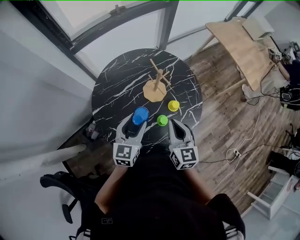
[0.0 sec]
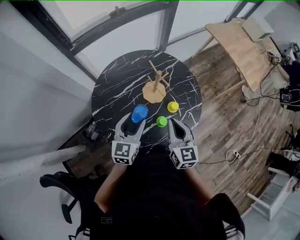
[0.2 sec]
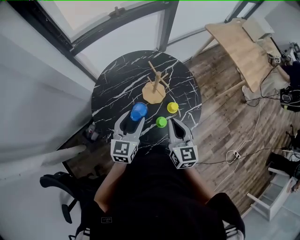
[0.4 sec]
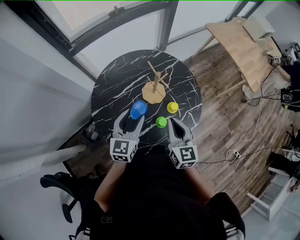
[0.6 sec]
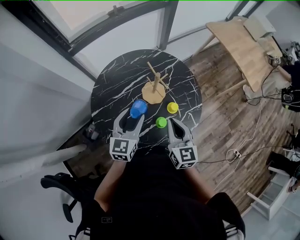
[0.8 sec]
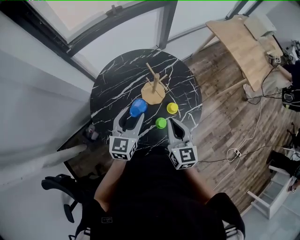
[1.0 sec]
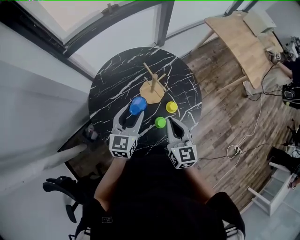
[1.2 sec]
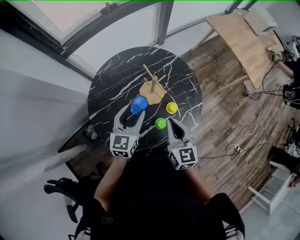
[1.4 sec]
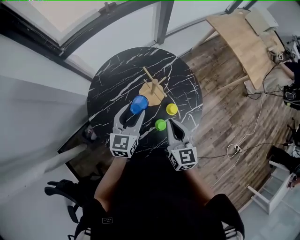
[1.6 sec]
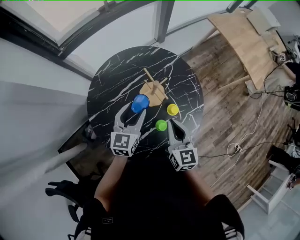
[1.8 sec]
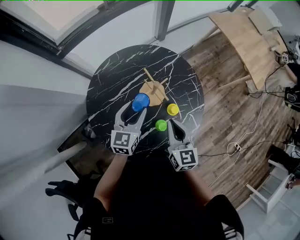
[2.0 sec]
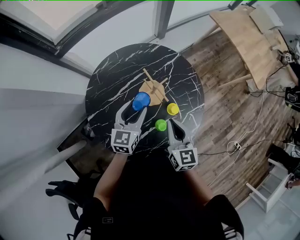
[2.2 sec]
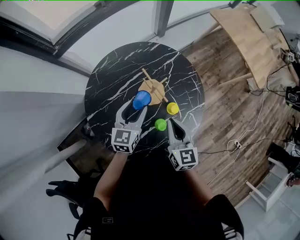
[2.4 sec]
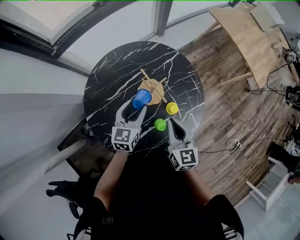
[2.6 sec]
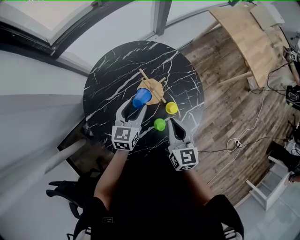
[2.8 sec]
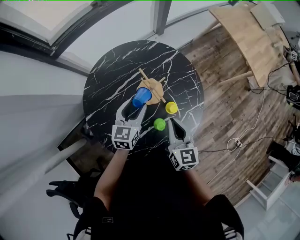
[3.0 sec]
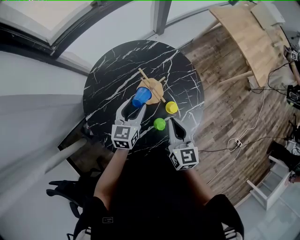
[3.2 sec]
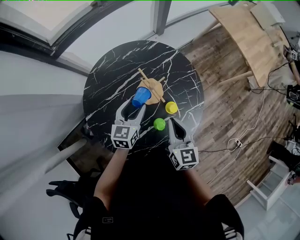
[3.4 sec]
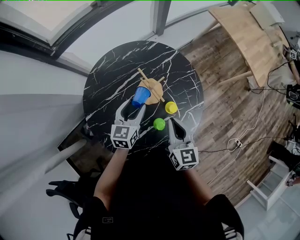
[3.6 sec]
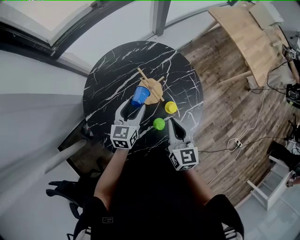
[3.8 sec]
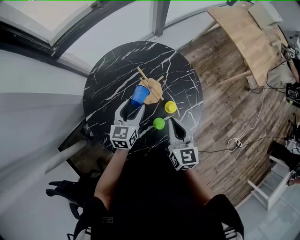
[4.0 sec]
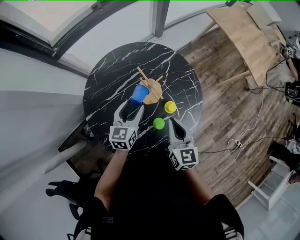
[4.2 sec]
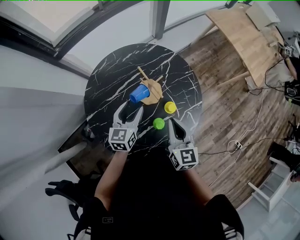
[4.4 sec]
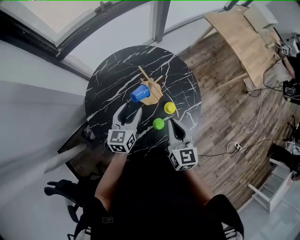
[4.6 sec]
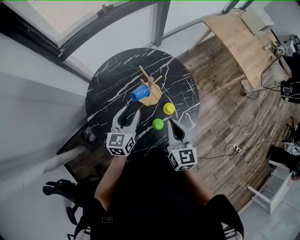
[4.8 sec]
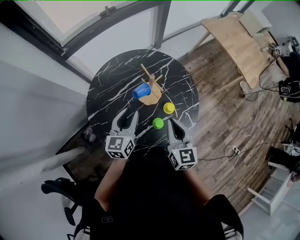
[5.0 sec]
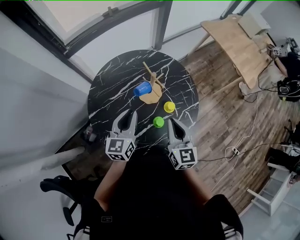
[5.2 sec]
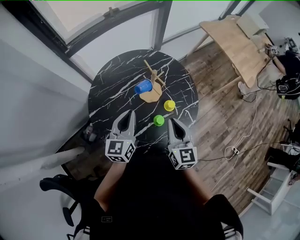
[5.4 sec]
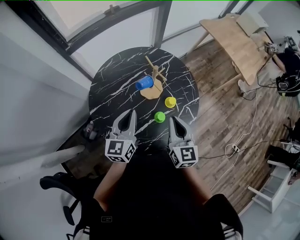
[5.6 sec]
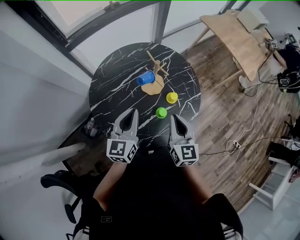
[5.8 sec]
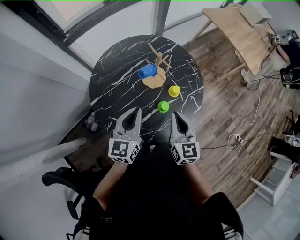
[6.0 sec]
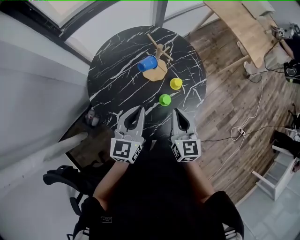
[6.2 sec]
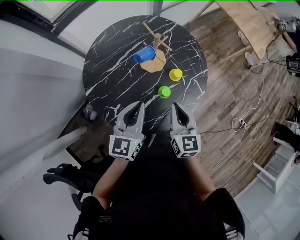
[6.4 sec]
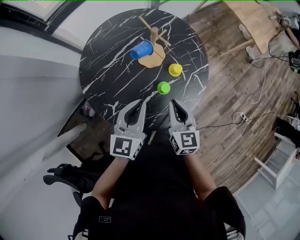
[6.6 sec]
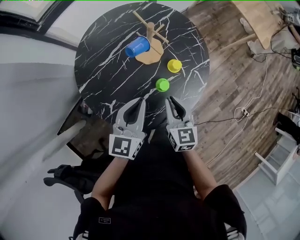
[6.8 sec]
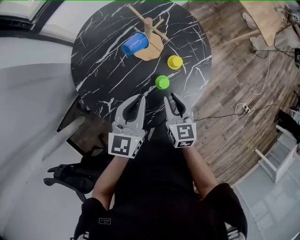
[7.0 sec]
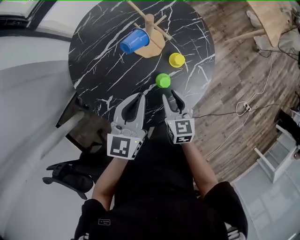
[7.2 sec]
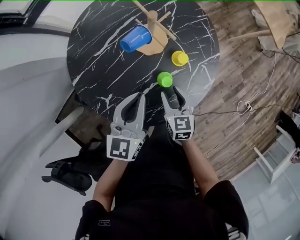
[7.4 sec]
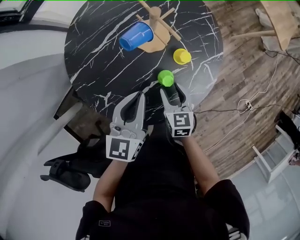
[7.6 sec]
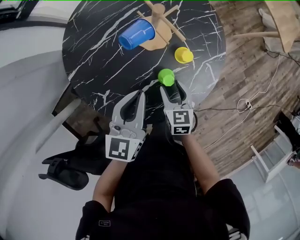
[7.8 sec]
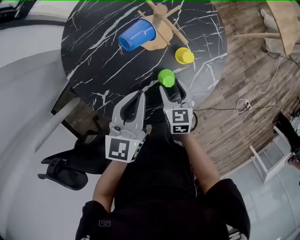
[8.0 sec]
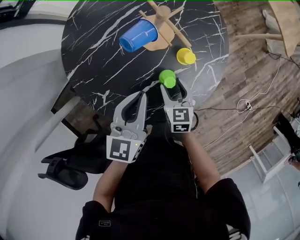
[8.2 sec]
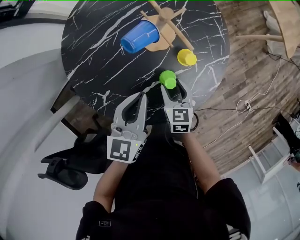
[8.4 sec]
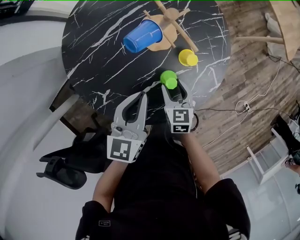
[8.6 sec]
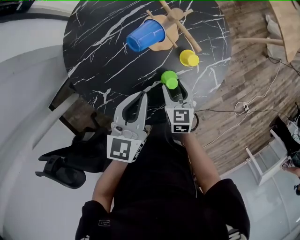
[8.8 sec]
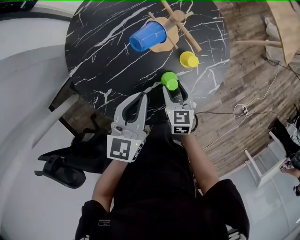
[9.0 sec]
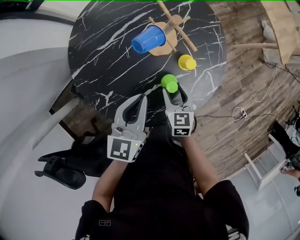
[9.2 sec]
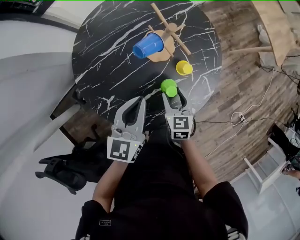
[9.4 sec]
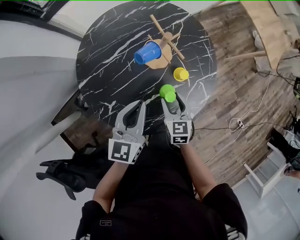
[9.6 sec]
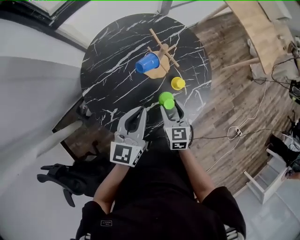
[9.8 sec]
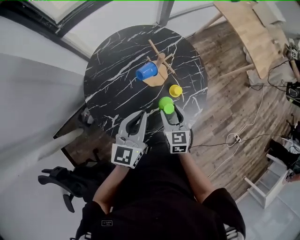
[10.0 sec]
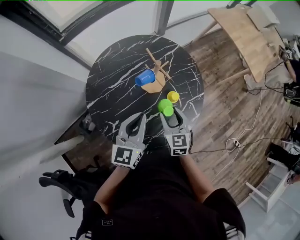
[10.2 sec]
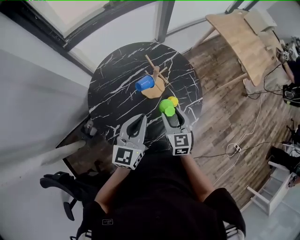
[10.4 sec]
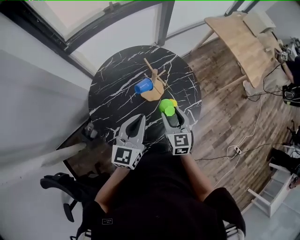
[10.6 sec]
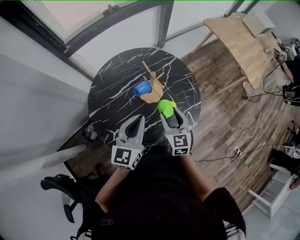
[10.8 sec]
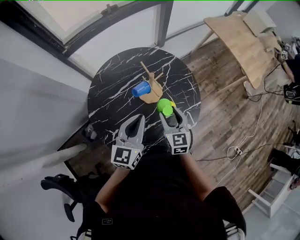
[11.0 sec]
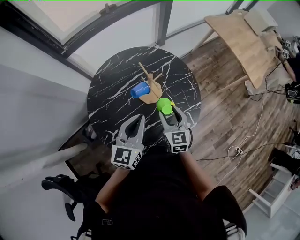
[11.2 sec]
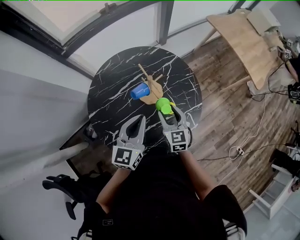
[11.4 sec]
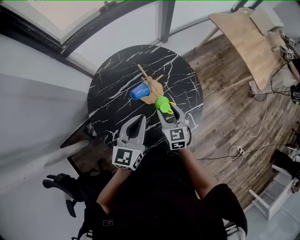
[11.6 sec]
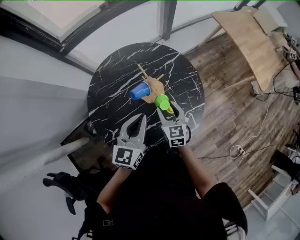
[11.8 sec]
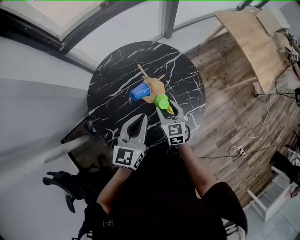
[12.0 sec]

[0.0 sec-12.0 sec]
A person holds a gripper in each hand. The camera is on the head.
0.0 sec to 1.6 sec: The right gripper shifts some 5 cm forward, while the left gripper moves forward, roughly 10 cm.
1.6 sec to 3.0 sec: The left gripper travels downward by roughly 5 cm.
3.0 sec to 4.4 sec: There are only small adjustments of the grippers.
4.4 sec to 6.0 sec: The right gripper heads backward, covering approximately 10 cm. Meanwhile the left gripper shifts approximately 15 cm backward and upward, and closes up.
6.0 sec to 7.6 sec: The right gripper travels downward by approximately 25 cm, changes its angle by approximately 30 degrees, and opens up. The left gripper is displaced downward by about 10 cm.
7.6 sec to 9.0 sec: The grippers stay close to where they were, moving slightly.
9.0 sec to 10.4 sec: Both grippers travel together upward, approximately 15 cm. The right gripper turns by about 20 degrees.
10.4 sec to 12.0 sec: The right gripper is displaced forward and downward by approximately 10 cm, while the left gripper shifts about 5 cm forward.

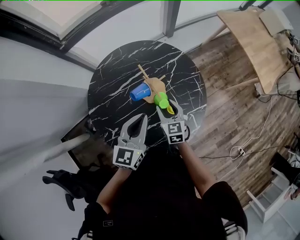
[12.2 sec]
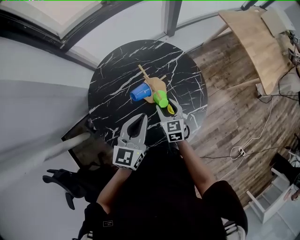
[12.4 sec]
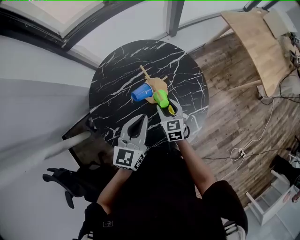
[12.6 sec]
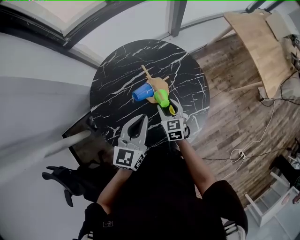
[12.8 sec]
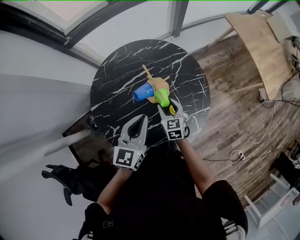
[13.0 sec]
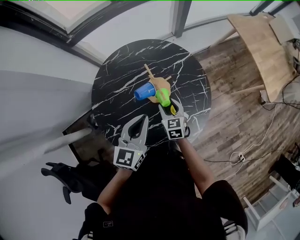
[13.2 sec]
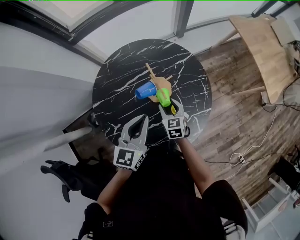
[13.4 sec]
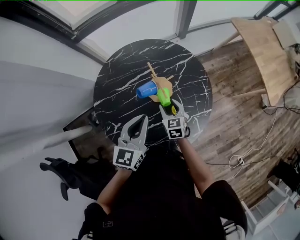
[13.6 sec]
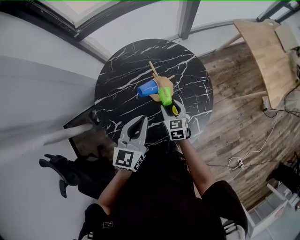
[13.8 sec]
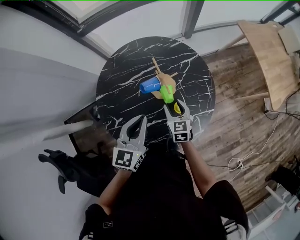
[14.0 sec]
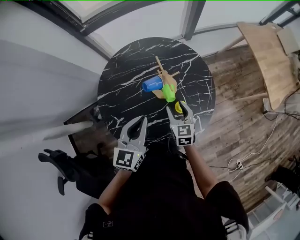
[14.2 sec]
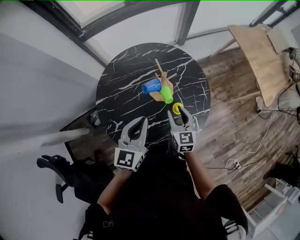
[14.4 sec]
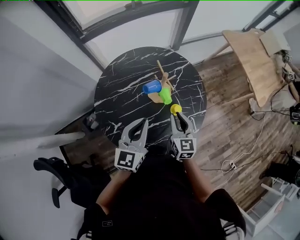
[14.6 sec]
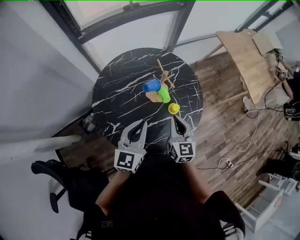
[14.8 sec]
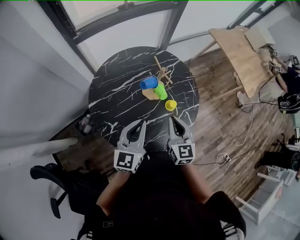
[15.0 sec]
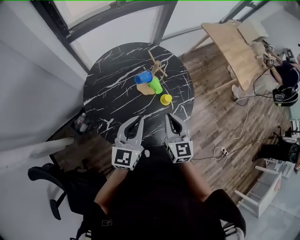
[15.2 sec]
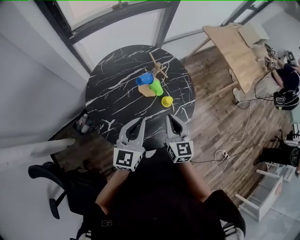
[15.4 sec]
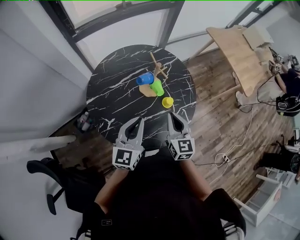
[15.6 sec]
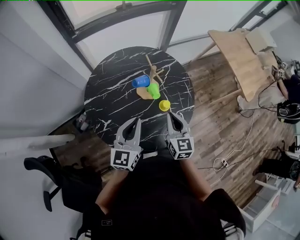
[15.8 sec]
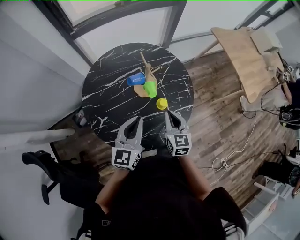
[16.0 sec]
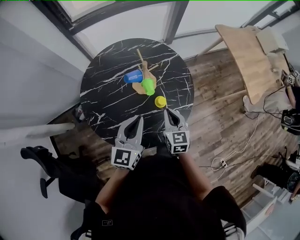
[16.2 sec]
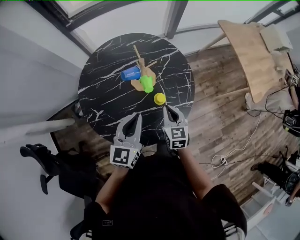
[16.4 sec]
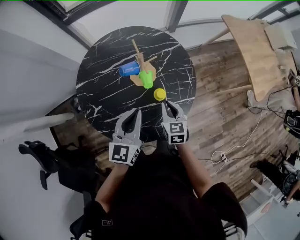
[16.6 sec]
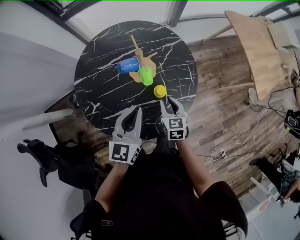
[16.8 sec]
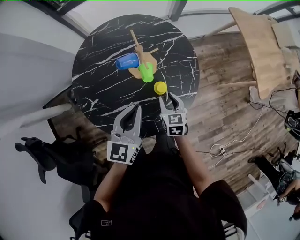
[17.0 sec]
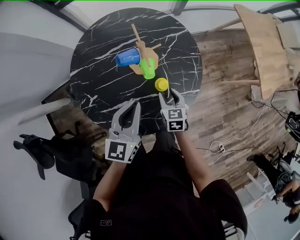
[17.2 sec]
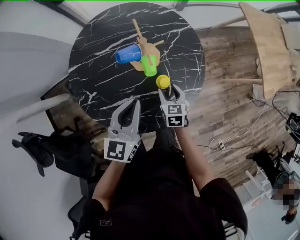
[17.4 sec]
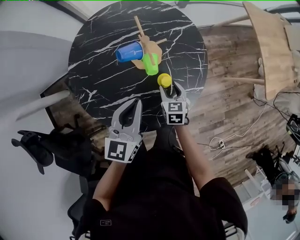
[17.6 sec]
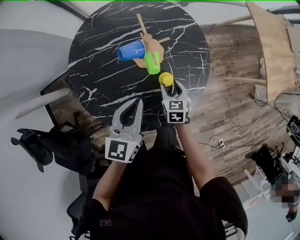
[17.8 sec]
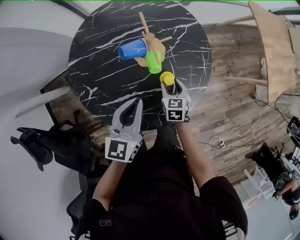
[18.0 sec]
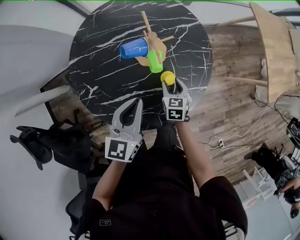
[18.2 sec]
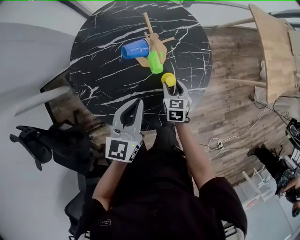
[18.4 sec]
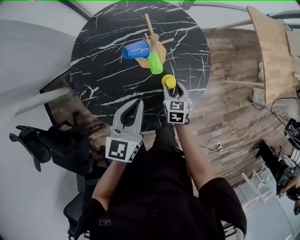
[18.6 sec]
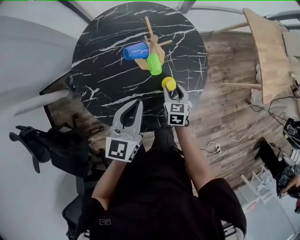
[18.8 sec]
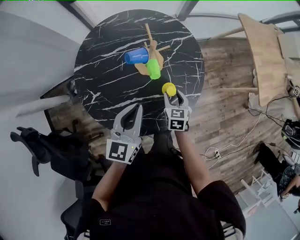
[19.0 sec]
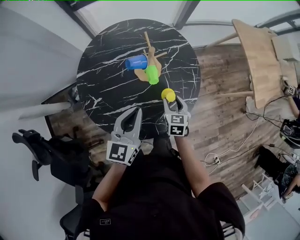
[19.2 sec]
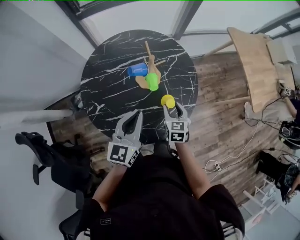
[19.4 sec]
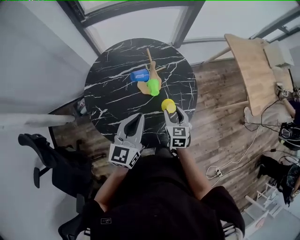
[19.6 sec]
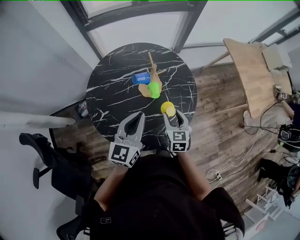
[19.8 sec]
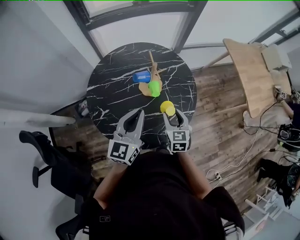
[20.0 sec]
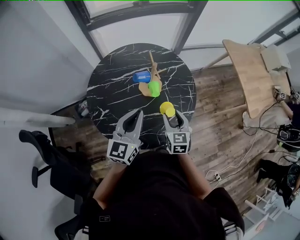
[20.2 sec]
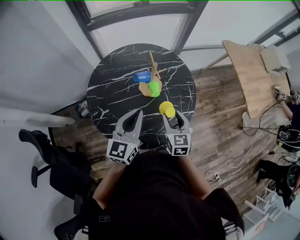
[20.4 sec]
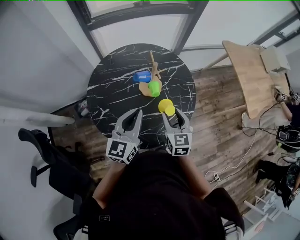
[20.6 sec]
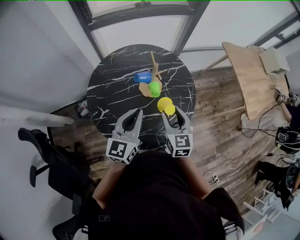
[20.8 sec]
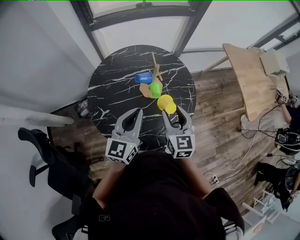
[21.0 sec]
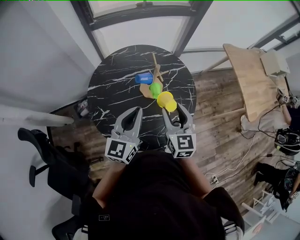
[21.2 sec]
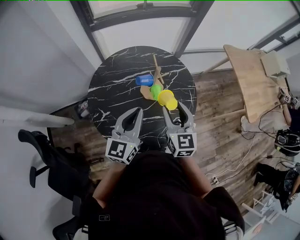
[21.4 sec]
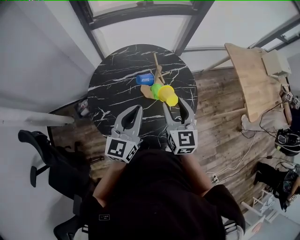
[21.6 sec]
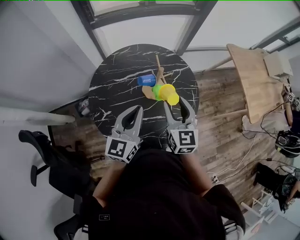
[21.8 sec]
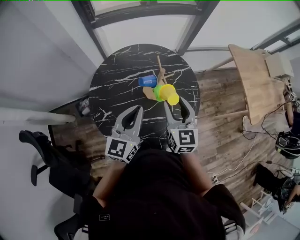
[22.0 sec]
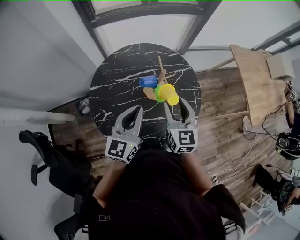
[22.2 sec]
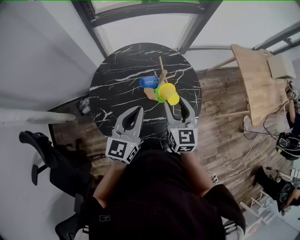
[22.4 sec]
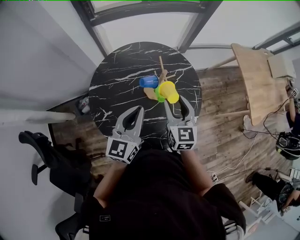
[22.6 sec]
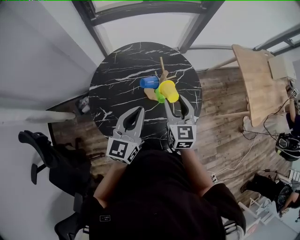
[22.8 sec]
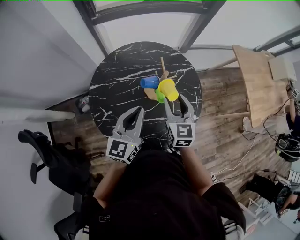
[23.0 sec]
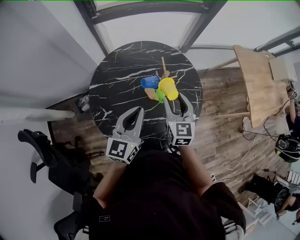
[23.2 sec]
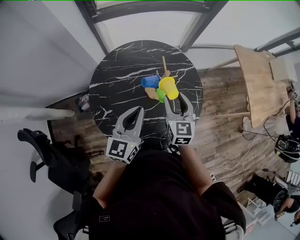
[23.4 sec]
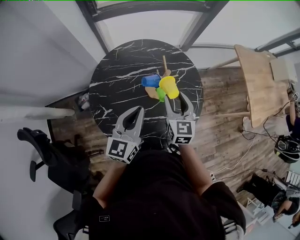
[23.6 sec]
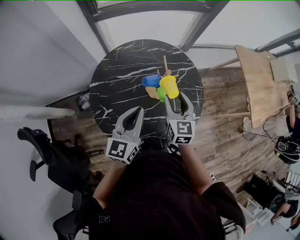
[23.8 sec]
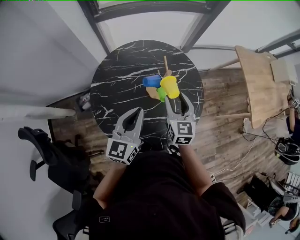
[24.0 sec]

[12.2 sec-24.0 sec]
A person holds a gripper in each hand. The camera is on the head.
12.2 sec to 13.6 sec: There are only small adjustments of the grippers.
13.6 sec to 15.2 sec: The right gripper moves upward and backward, approximately 25 cm, rotates some 30 degrees, and closes up; the left gripper goes roughly 10 cm backward and to the left.
15.2 sec to 16.6 sec: The right gripper heads downward, to the right and forward, covering about 20 cm, and rotates about 20 degrees. The left gripper shifts roughly 10 cm to the right.
16.6 sec to 18.2 sec: The right gripper travels downward by roughly 15 cm, and opens, while the left gripper moves downward, some 5 cm.
18.2 sec to 19.6 sec: The left gripper goes about 10 cm upward. Meanwhile the right gripper travels upward by about 15 cm.
19.6 sec to 21.0 sec: The right gripper moves upward, approximately 15 cm.
21.0 sec to 22.6 sec: The right gripper is displaced forward by roughly 10 cm. Meanwhile the left gripper is displaced forward by some 5 cm.
22.6 sec to 24.0 sec: There are only small adjustments of the grippers.
